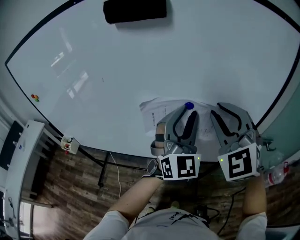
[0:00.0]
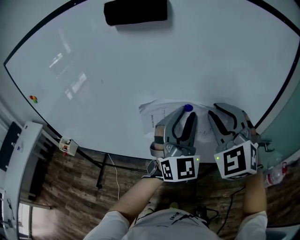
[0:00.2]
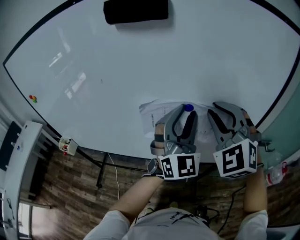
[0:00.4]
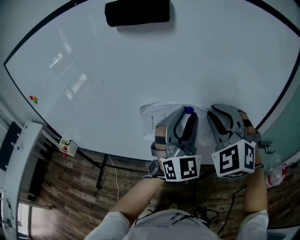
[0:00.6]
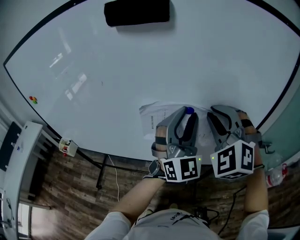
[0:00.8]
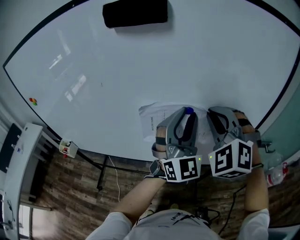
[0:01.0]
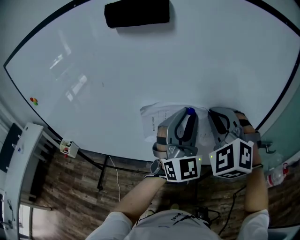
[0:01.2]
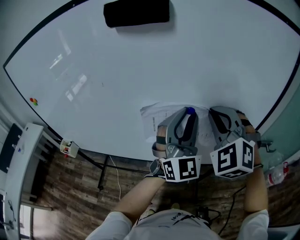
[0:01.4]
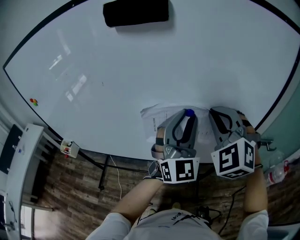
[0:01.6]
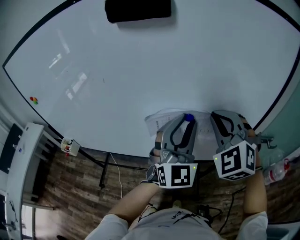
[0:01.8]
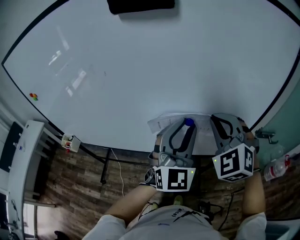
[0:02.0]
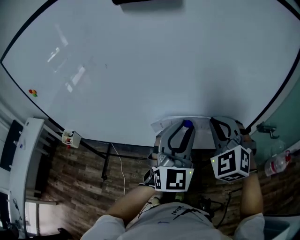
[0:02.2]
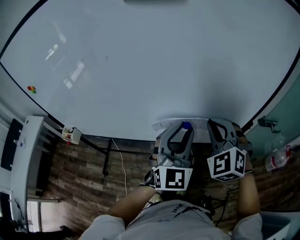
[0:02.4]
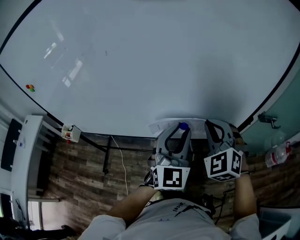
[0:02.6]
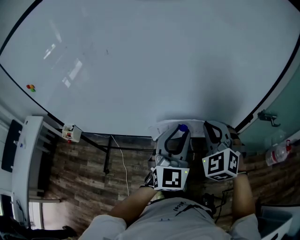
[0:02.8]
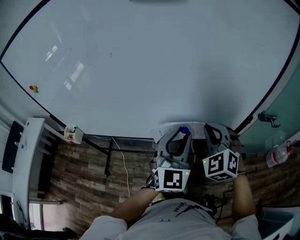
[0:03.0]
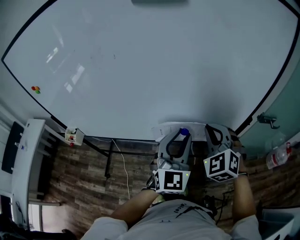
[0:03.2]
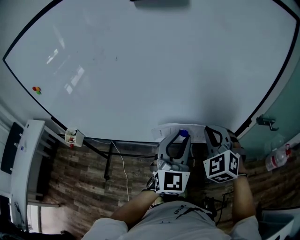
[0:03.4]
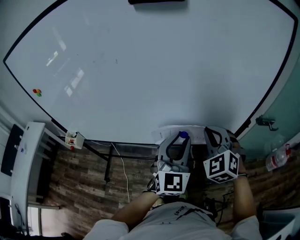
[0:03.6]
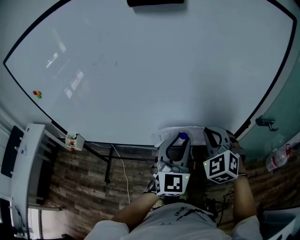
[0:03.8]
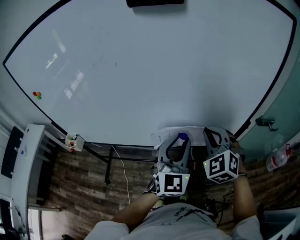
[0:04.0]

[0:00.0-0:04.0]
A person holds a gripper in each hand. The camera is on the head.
0:00.0 to 0:01.4: The grippers stay close to where they were, moving slightly.
0:01.4 to 0:02.6: The two grippers go roughly 15 cm downward and backward. The left gripper swivels roughly 20 degrees.
0:02.6 to 0:04.0: The grippers move only a little.

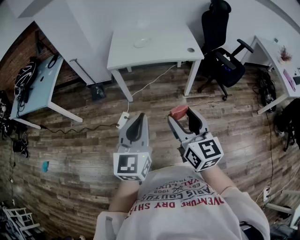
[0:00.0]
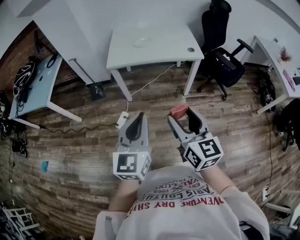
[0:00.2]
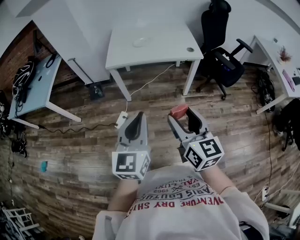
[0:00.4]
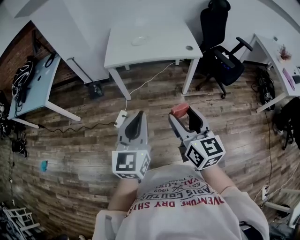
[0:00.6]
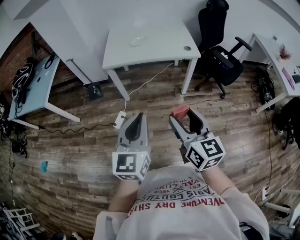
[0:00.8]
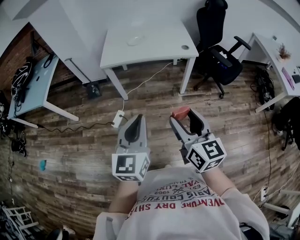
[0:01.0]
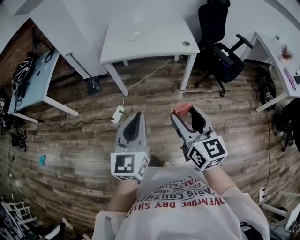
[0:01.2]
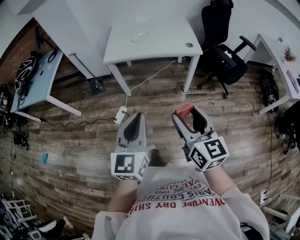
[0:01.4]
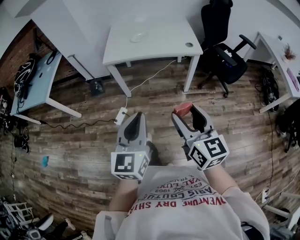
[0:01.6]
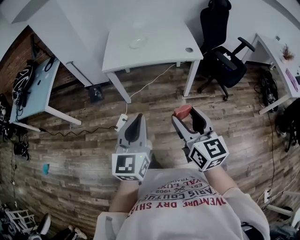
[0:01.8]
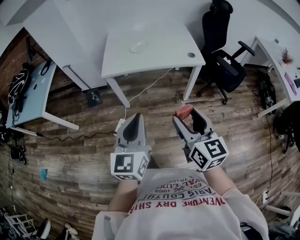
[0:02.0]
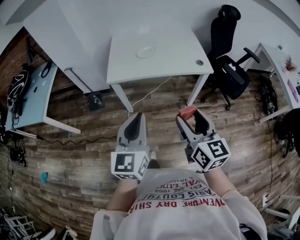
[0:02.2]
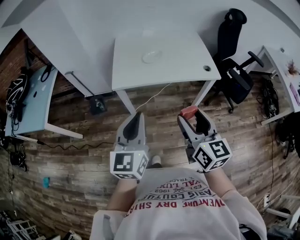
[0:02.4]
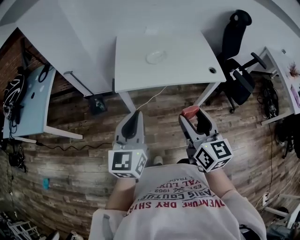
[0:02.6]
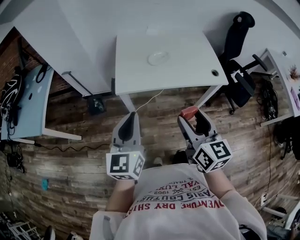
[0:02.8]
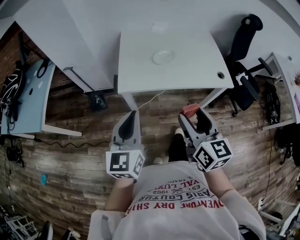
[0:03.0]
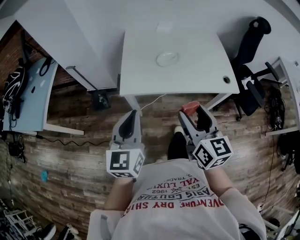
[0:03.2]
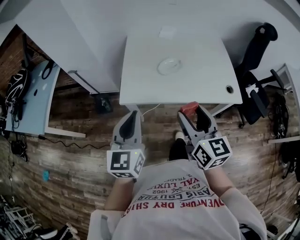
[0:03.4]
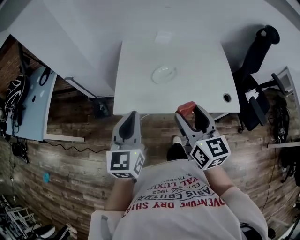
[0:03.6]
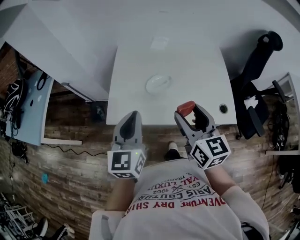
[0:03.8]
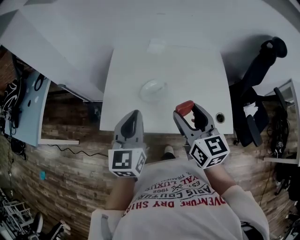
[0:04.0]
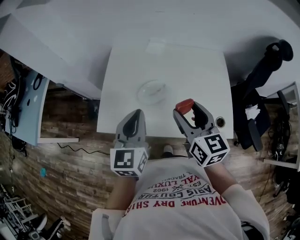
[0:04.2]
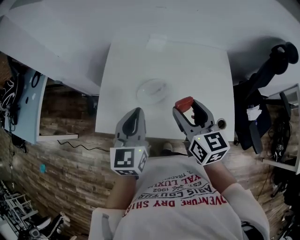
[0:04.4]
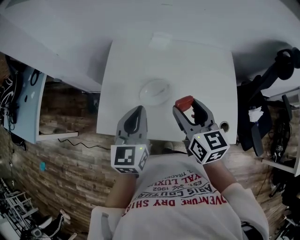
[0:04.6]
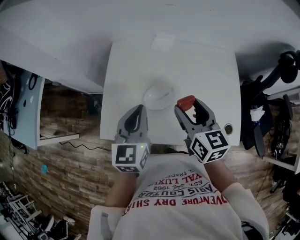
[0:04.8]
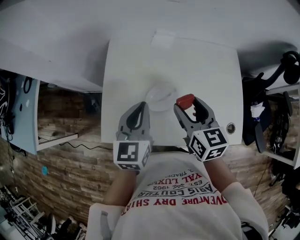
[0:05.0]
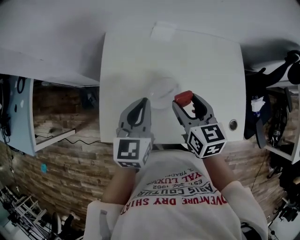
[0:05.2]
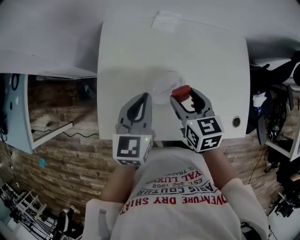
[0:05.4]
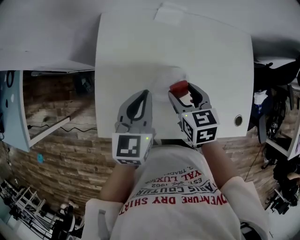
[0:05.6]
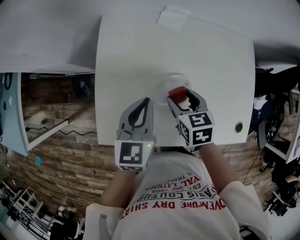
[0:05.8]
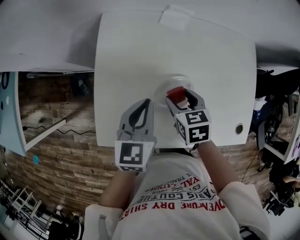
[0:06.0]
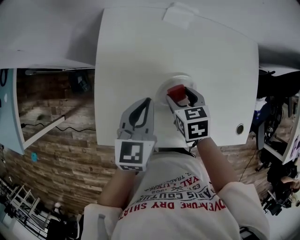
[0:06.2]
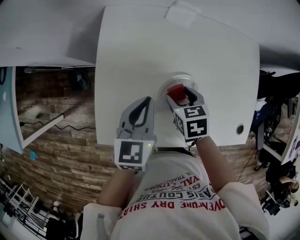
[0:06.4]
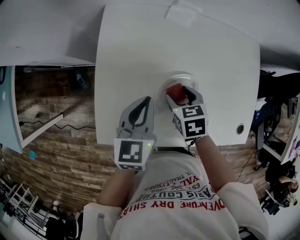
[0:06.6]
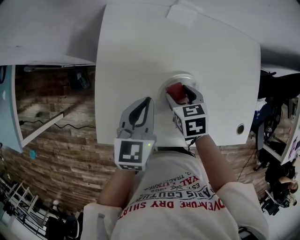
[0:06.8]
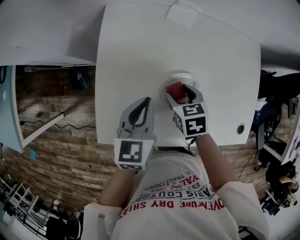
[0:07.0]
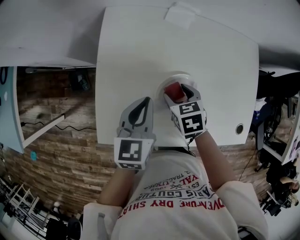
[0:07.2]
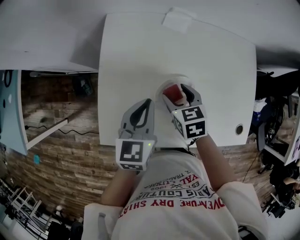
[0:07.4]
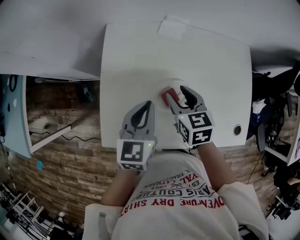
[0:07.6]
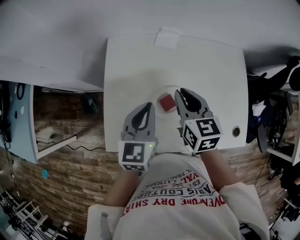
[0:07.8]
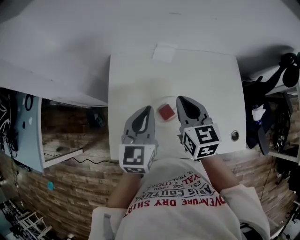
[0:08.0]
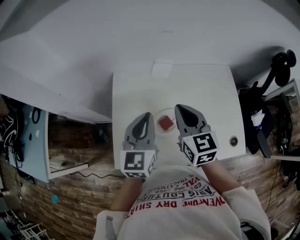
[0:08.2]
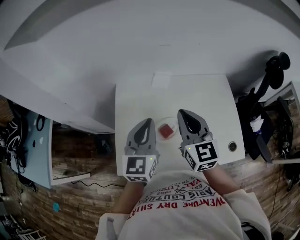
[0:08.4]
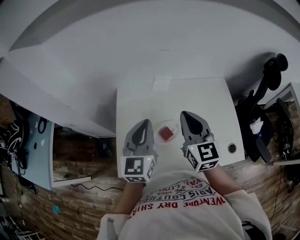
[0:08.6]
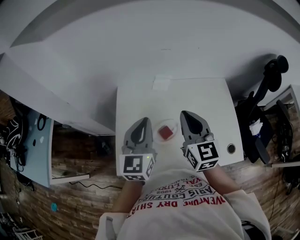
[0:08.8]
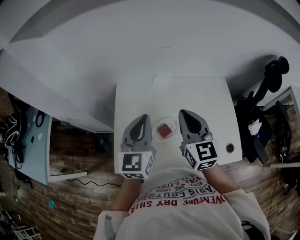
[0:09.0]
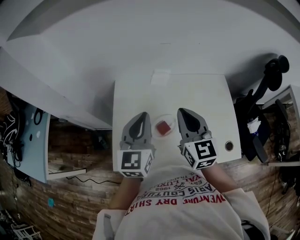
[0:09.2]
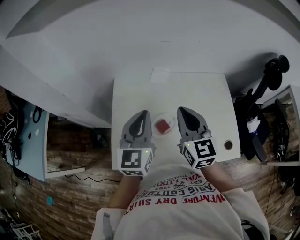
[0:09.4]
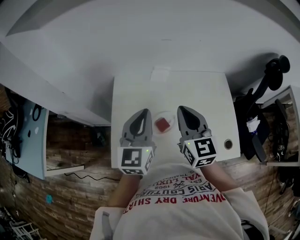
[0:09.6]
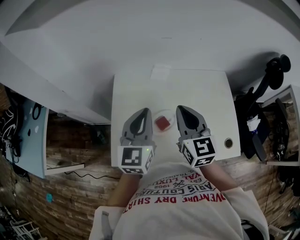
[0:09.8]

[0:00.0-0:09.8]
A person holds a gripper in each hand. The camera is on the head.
0:00.0 to 0:01.4: The right gripper travels to the right by about 5 cm.
0:01.4 to 0:02.8: The two grippers go about 35 cm forward and to the left.
0:02.8 to 0:04.2: Both grippers travel together forward and to the right, roughly 35 cm.
0:04.2 to 0:05.6: The right gripper shifts some 25 cm downward, forward and to the left, and tilts its fingers approximately 30 degrees downward; the left gripper moves forward and downward, some 20 cm.
0:05.6 to 0:07.0: The left gripper travels downward by about 5 cm, while the right gripper goes roughly 10 cm downward.
0:07.0 to 0:08.4: The right gripper moves upward, roughly 30 cm, tilts its fingers about 50 degrees upward, and closes. Meanwhile the left gripper goes roughly 20 cm upward, and rotates about 30 degrees.
0:08.4 to 0:09.8: The grippers stay close to where they were, moving slightly.

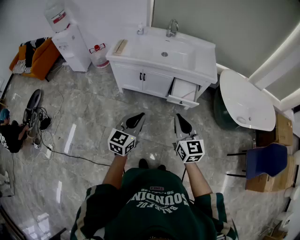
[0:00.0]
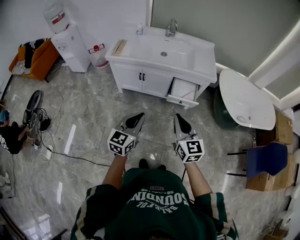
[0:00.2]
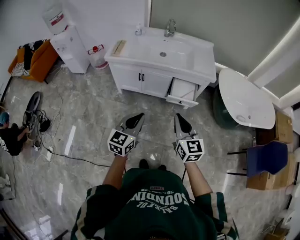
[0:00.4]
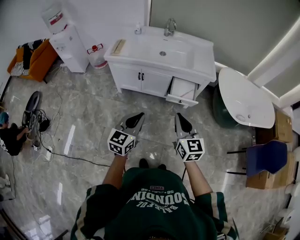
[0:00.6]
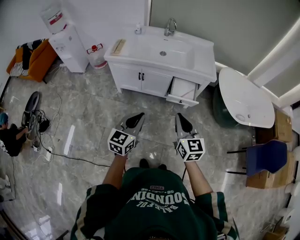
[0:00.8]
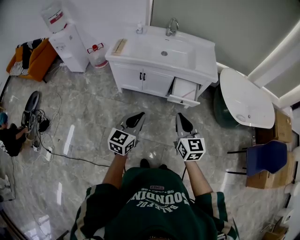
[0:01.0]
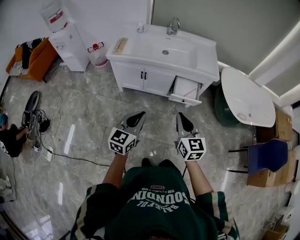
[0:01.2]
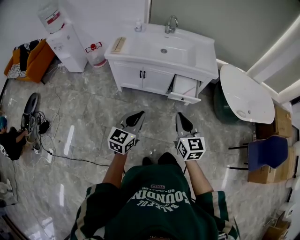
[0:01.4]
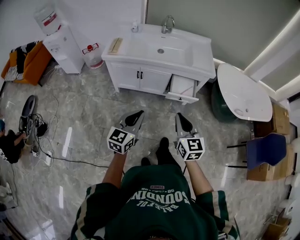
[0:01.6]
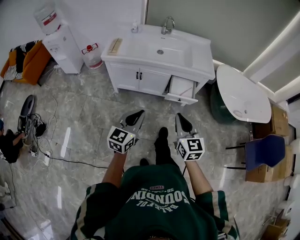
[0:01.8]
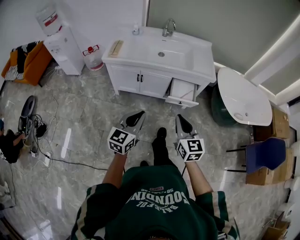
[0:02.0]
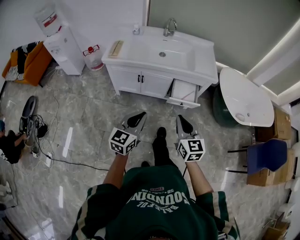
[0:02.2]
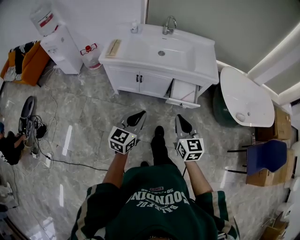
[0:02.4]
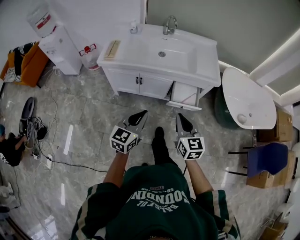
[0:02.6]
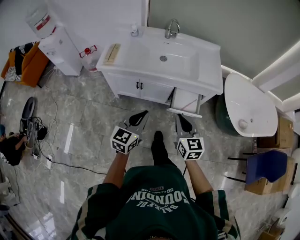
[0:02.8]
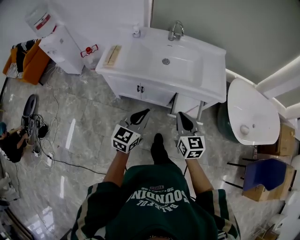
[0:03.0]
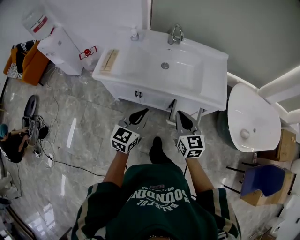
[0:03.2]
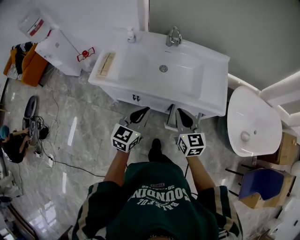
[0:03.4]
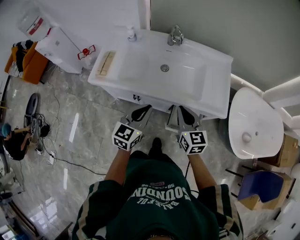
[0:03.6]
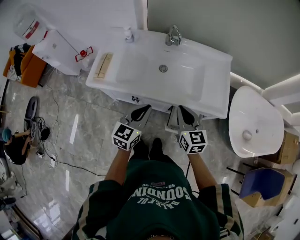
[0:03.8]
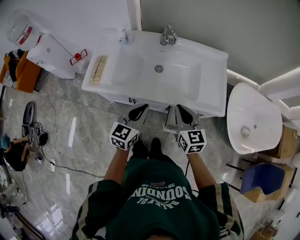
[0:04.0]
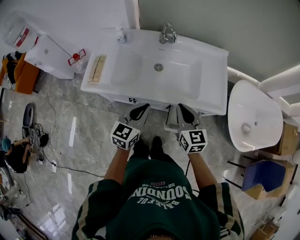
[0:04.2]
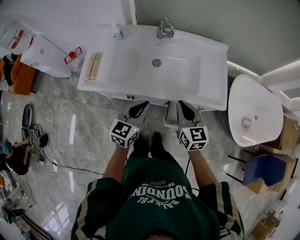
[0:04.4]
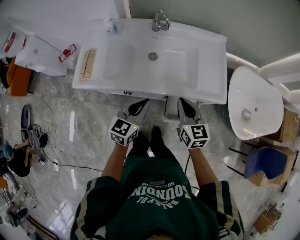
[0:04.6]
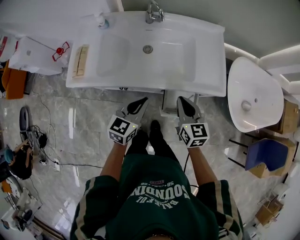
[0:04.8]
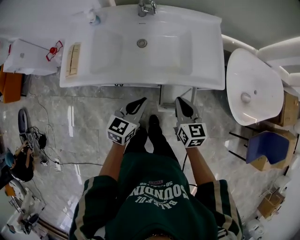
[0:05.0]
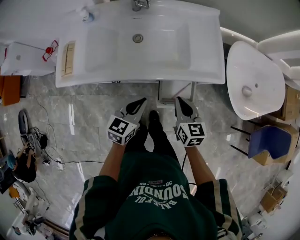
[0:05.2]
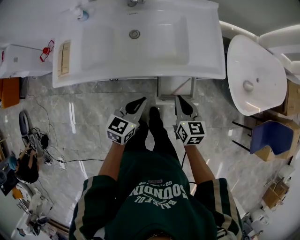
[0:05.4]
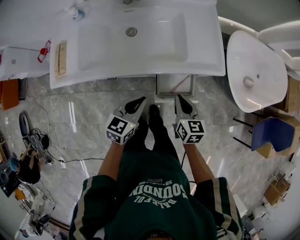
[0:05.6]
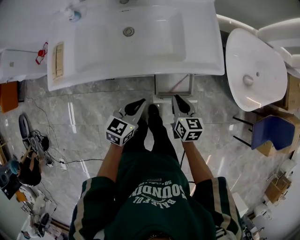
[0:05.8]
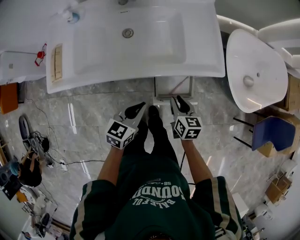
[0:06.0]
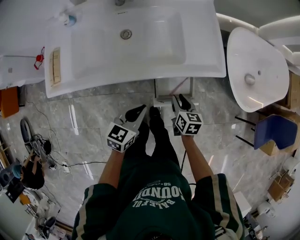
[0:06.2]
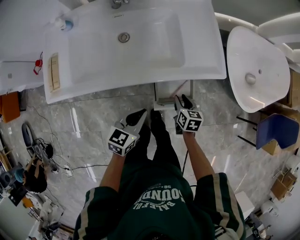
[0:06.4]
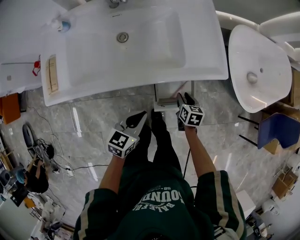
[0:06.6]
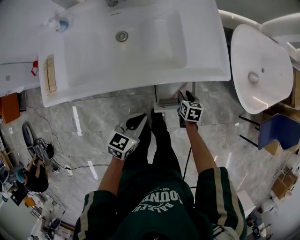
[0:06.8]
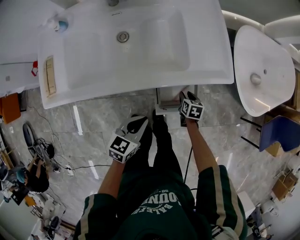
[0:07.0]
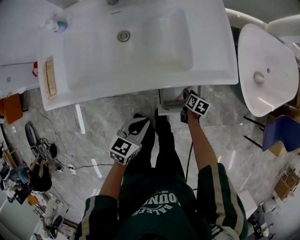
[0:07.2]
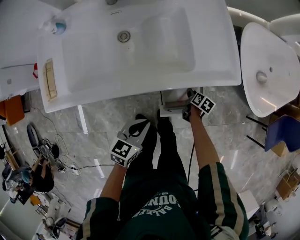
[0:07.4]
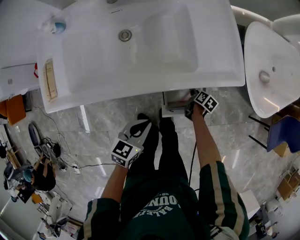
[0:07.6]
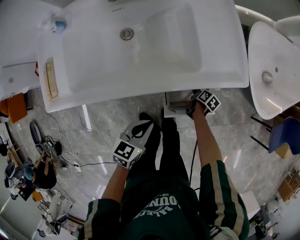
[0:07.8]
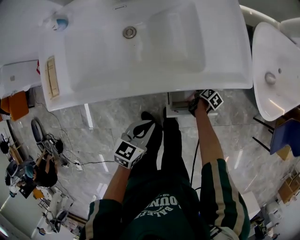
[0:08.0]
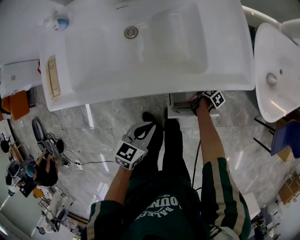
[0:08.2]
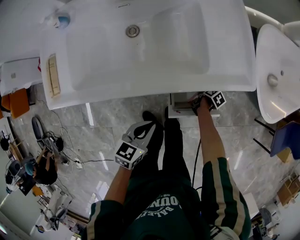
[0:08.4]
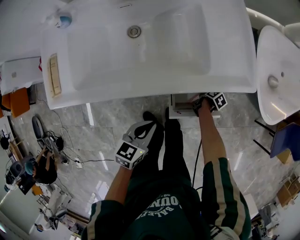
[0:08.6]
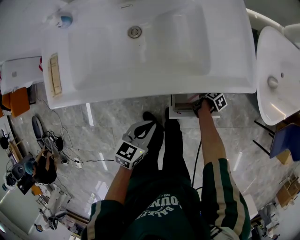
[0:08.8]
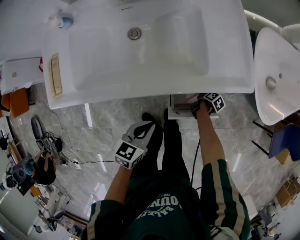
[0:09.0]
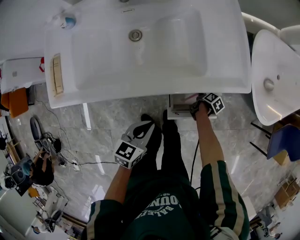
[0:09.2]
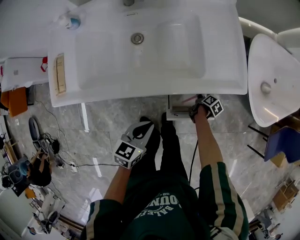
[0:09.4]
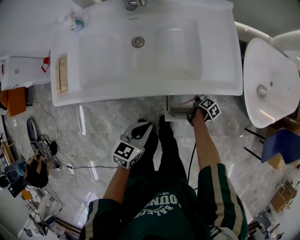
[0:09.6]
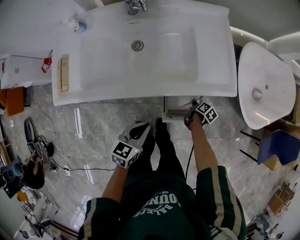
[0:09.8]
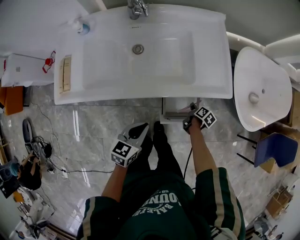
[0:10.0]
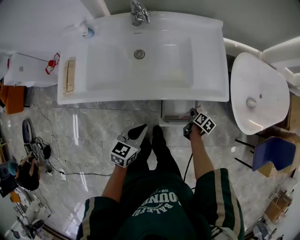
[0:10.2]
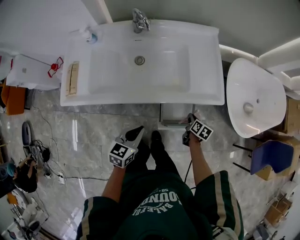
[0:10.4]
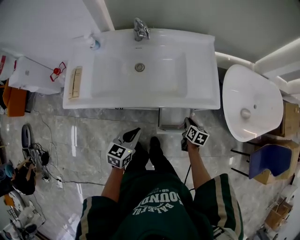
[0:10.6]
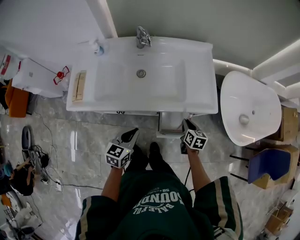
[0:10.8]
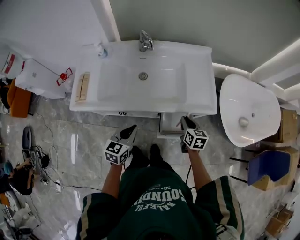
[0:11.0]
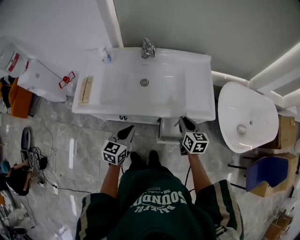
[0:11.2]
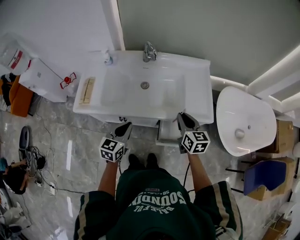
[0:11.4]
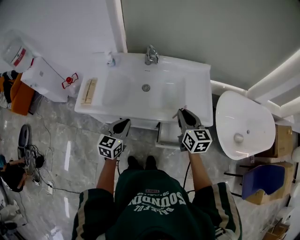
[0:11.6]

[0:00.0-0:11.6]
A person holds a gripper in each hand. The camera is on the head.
0:00.0 to 0:01.4: The grippers stay close to where they were, moving slightly.
0:01.4 to 0:02.8: Both grippers travel together forward, roughly 20 cm.
0:02.8 to 0:04.4: The two grippers go some 25 cm forward.
0:04.4 to 0:05.8: Both grippers move downward and to the right, roughly 20 cm. The right gripper turns by some 30 degrees. The left gripper turns by some 20 degrees.
0:05.8 to 0:07.2: The right gripper moves downward, roughly 25 cm, swivels roughly 40 degrees, and opens up, while the left gripper shifts some 10 cm downward.
0:07.2 to 0:08.8: The right gripper goes roughly 10 cm downward, swivels some 40 degrees, and closes its fingers.
0:08.8 to 0:10.2: The right gripper travels upward by roughly 20 cm, and rotates roughly 30 degrees. Meanwhile the left gripper moves upward, roughly 10 cm.
0:10.2 to 0:11.6: The right gripper goes roughly 40 cm upward, and tips its fingers upward by approximately 40 degrees. Meanwhile the left gripper goes roughly 20 cm upward and to the left, and changes its angle by about 20 degrees.
